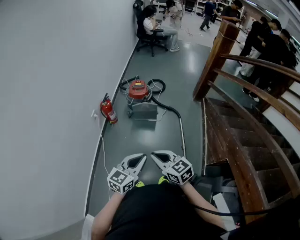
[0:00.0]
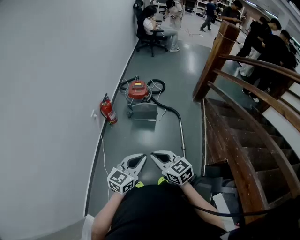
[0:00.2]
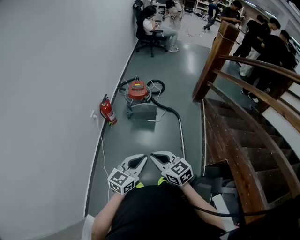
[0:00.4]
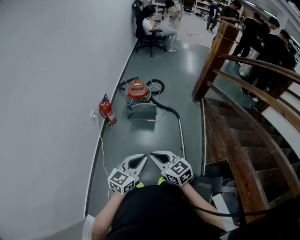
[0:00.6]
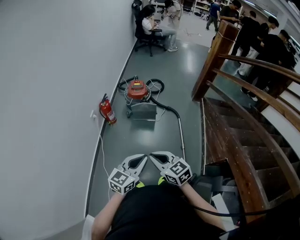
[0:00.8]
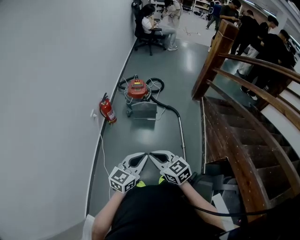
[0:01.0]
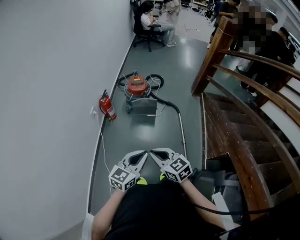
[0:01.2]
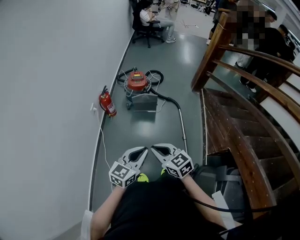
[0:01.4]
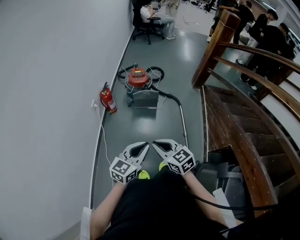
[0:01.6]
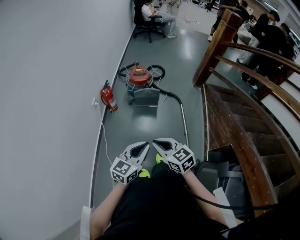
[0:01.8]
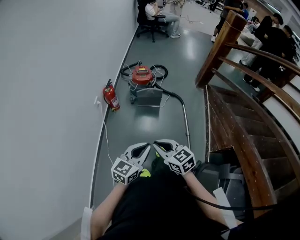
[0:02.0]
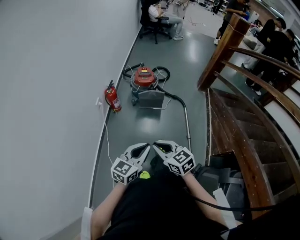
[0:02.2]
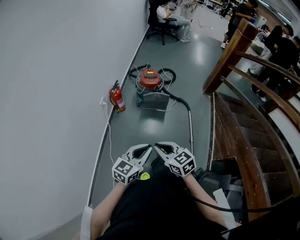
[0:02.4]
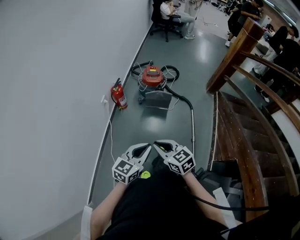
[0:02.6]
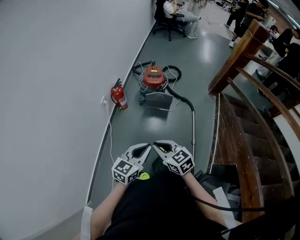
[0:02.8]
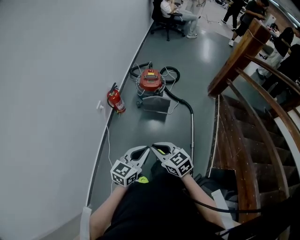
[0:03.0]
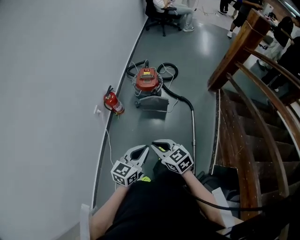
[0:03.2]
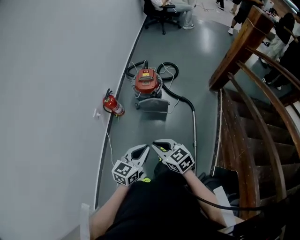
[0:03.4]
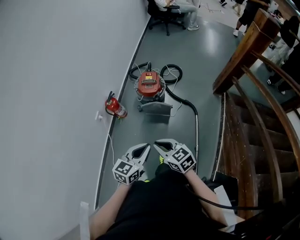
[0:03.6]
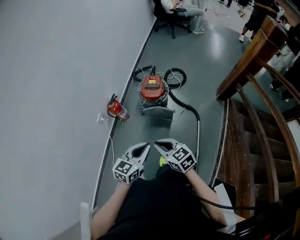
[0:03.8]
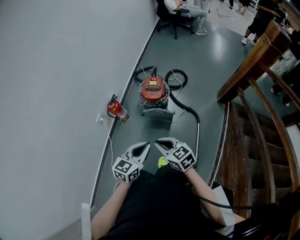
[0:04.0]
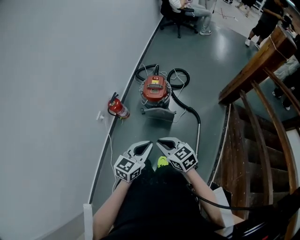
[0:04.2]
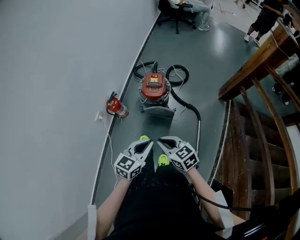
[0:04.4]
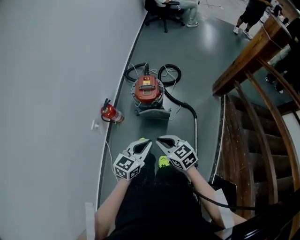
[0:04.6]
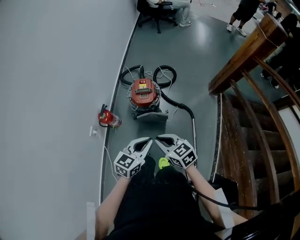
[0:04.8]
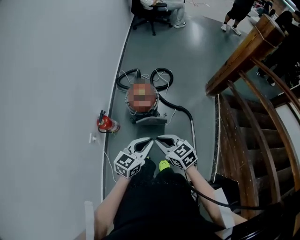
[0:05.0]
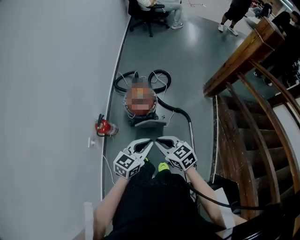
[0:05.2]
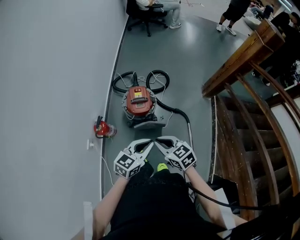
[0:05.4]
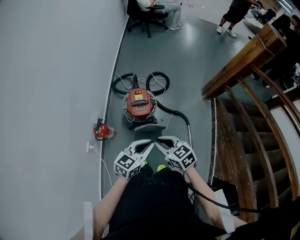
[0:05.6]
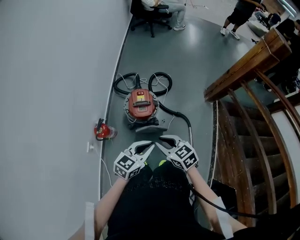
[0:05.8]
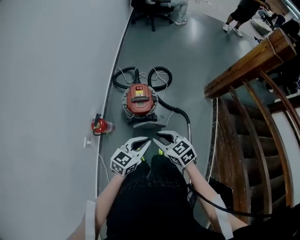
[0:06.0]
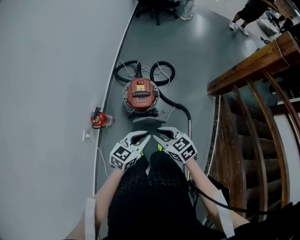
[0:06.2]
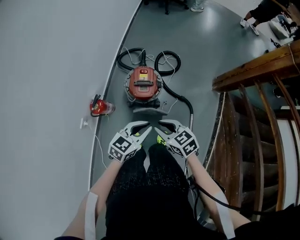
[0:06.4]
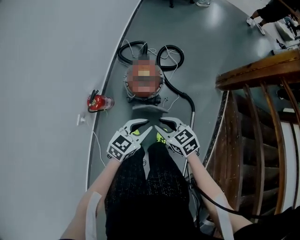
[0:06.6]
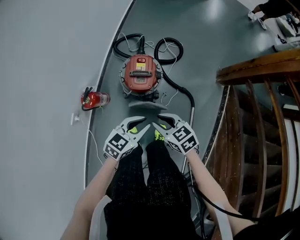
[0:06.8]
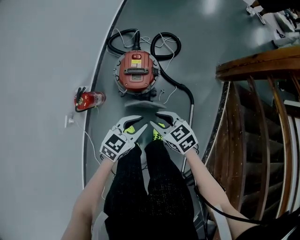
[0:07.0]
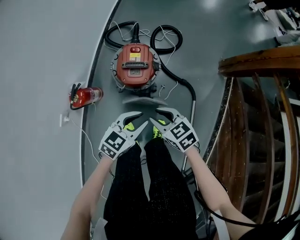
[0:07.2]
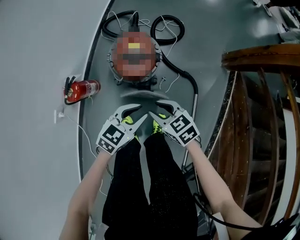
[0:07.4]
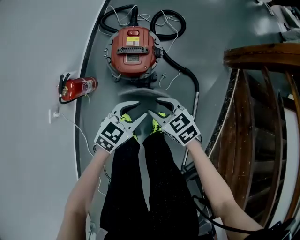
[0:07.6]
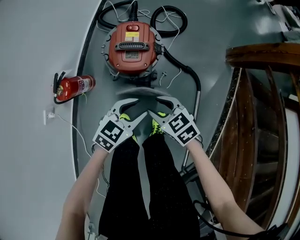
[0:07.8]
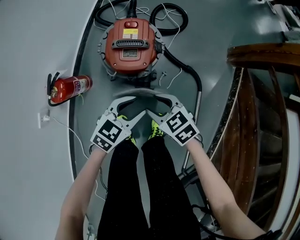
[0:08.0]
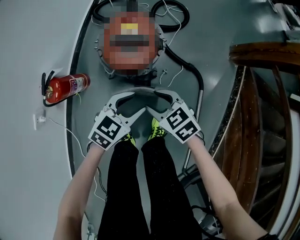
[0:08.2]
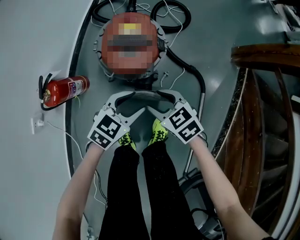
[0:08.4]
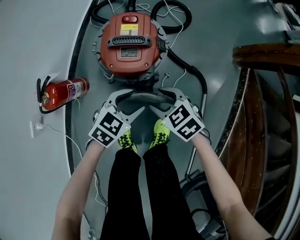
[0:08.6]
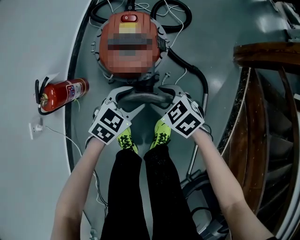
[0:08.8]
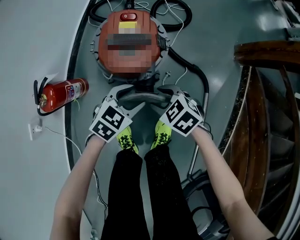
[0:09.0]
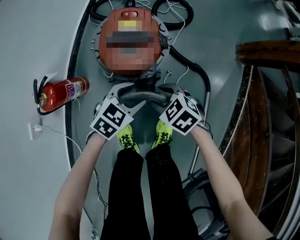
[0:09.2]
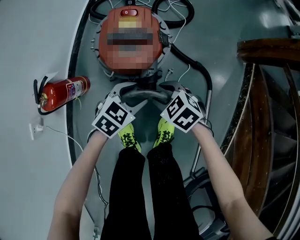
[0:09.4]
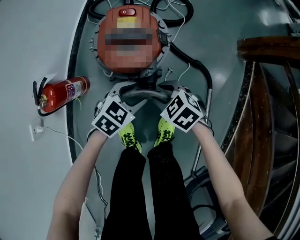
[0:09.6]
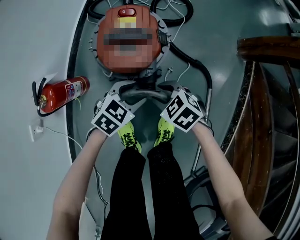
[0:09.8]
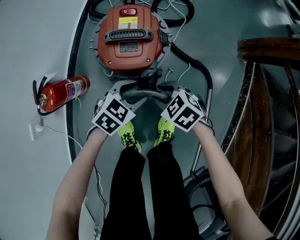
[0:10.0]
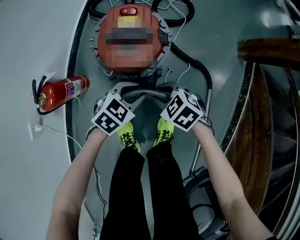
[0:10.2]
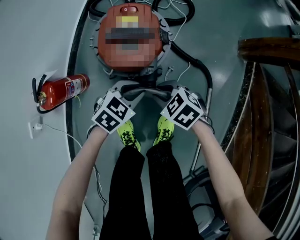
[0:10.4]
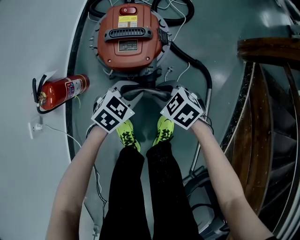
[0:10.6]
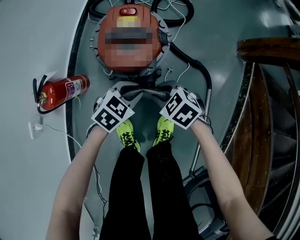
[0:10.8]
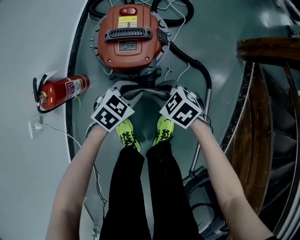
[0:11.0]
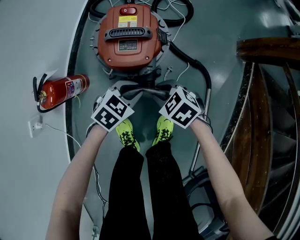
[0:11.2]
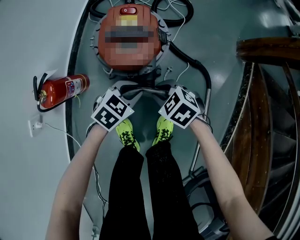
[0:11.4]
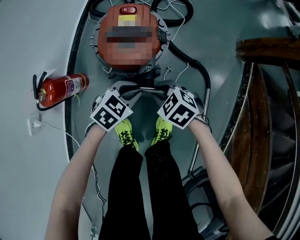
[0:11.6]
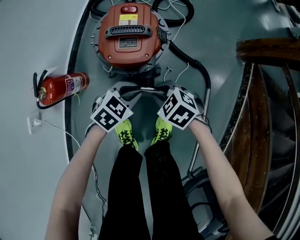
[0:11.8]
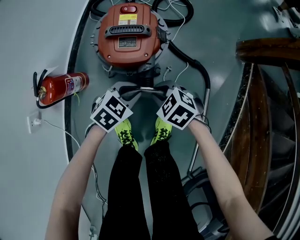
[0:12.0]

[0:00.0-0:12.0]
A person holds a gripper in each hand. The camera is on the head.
0:00.0 to 0:01.6: There are only small adjustments of the grippers.
0:01.6 to 0:03.0: The two grippers go roughly 10 cm forward.
0:03.0 to 0:04.4: The right gripper moves forward and to the right, roughly 20 cm. The left gripper heads forward, covering some 20 cm.
0:04.4 to 0:06.0: The two grippers go approximately 15 cm forward.
0:06.0 to 0:07.6: Both grippers travel together downward, approximately 25 cm. The left gripper opens.
0:07.6 to 0:09.0: Both grippers move downward, some 15 cm. The left gripper opens its fingers.
0:09.0 to 0:10.4: The left gripper closes its fingers, while the right gripper closes its fingers.
0:10.4 to 0:12.0: The grippers stay close to where they were, moving slightly.

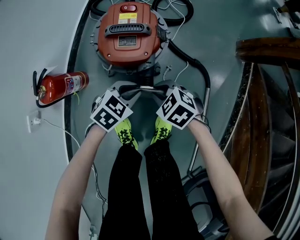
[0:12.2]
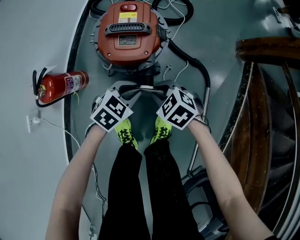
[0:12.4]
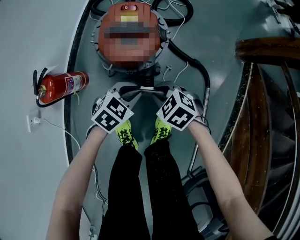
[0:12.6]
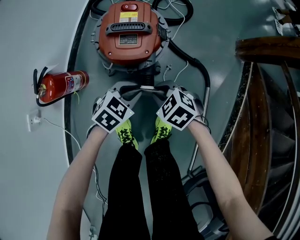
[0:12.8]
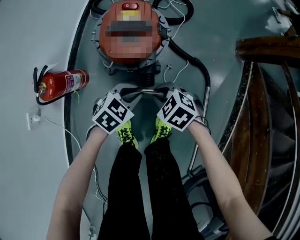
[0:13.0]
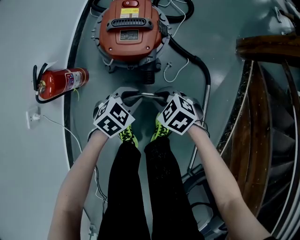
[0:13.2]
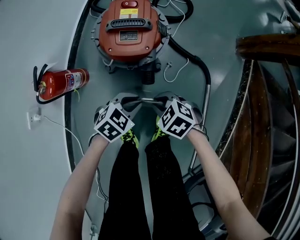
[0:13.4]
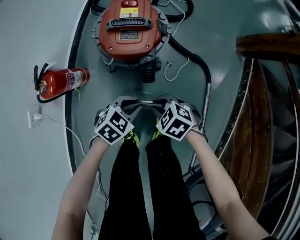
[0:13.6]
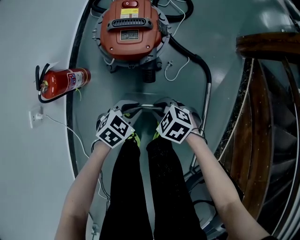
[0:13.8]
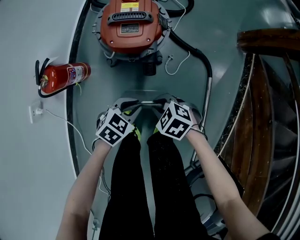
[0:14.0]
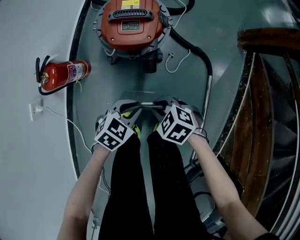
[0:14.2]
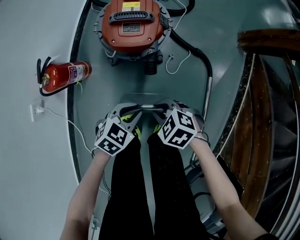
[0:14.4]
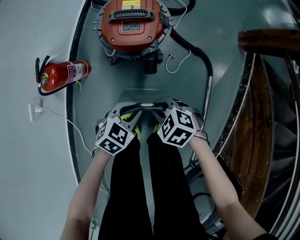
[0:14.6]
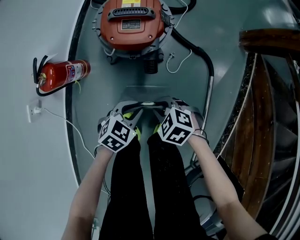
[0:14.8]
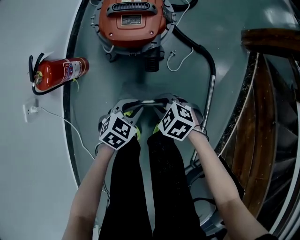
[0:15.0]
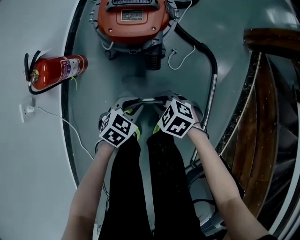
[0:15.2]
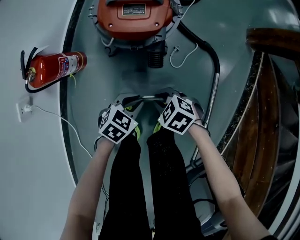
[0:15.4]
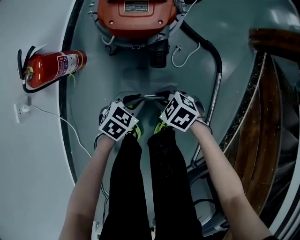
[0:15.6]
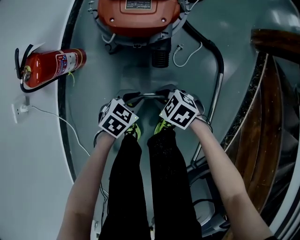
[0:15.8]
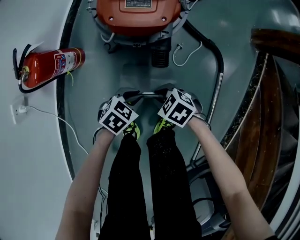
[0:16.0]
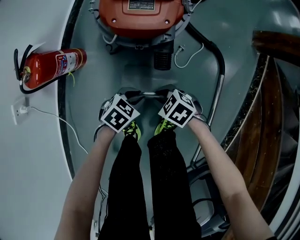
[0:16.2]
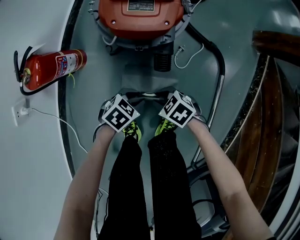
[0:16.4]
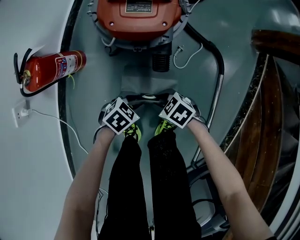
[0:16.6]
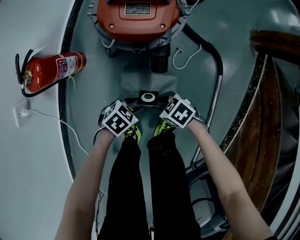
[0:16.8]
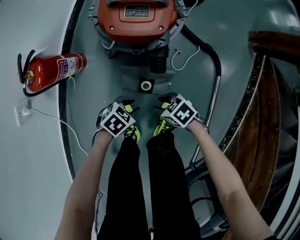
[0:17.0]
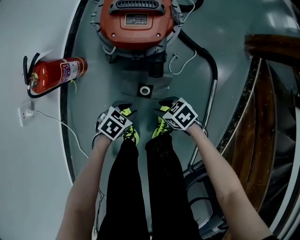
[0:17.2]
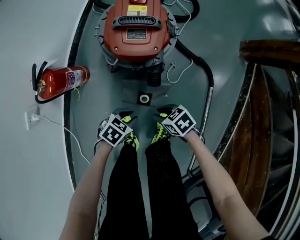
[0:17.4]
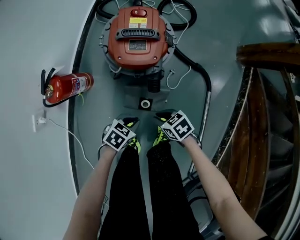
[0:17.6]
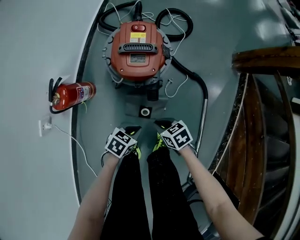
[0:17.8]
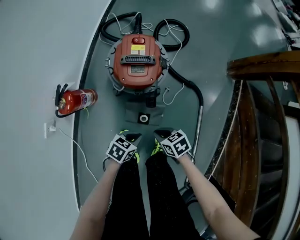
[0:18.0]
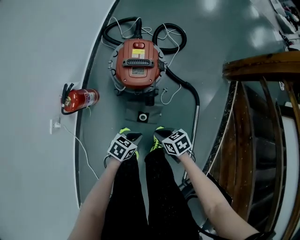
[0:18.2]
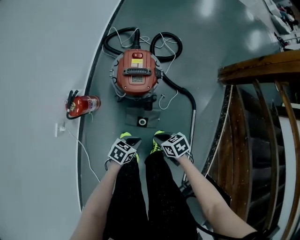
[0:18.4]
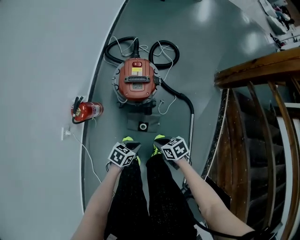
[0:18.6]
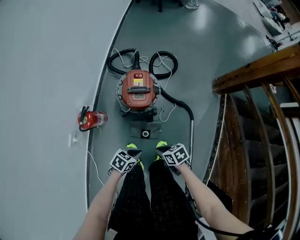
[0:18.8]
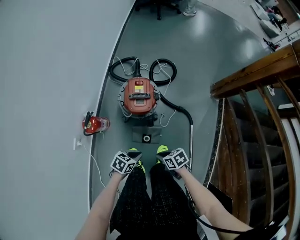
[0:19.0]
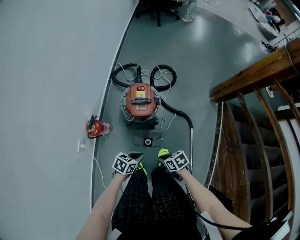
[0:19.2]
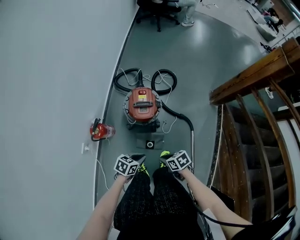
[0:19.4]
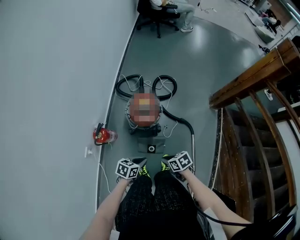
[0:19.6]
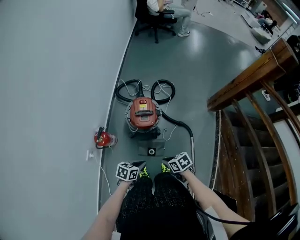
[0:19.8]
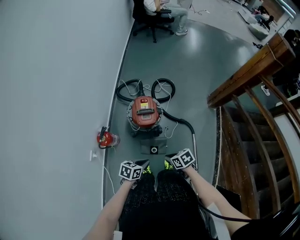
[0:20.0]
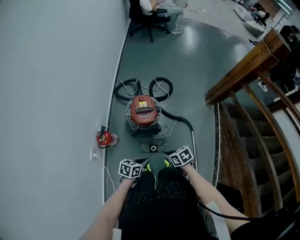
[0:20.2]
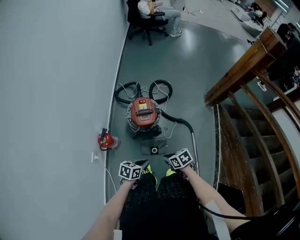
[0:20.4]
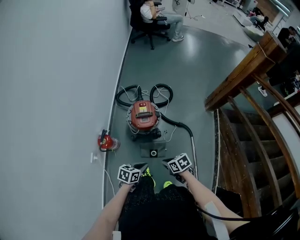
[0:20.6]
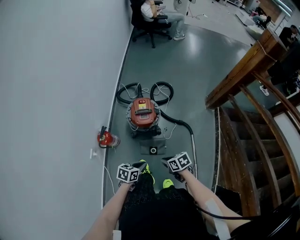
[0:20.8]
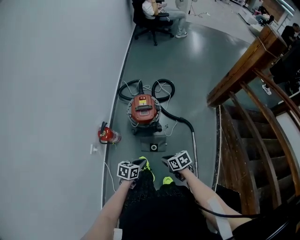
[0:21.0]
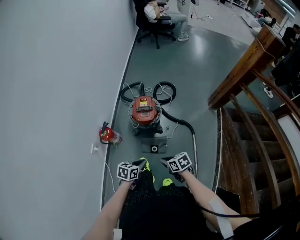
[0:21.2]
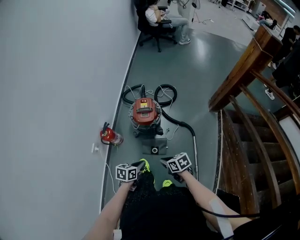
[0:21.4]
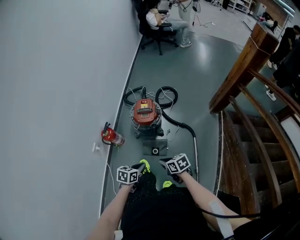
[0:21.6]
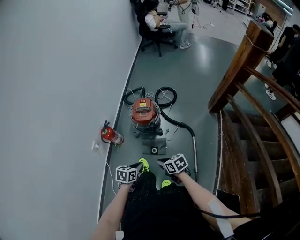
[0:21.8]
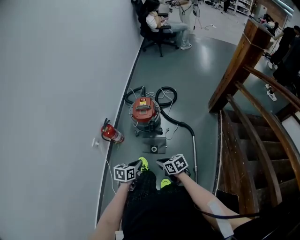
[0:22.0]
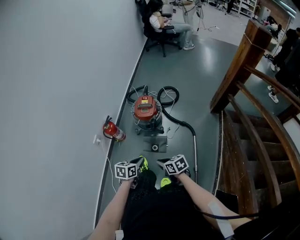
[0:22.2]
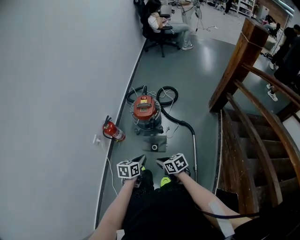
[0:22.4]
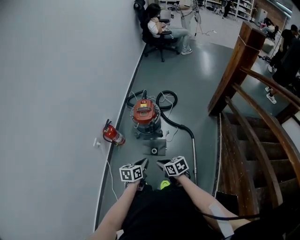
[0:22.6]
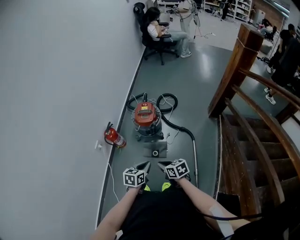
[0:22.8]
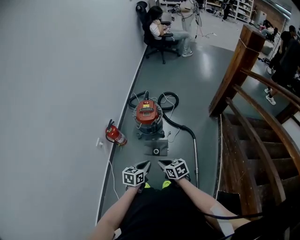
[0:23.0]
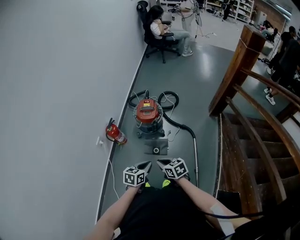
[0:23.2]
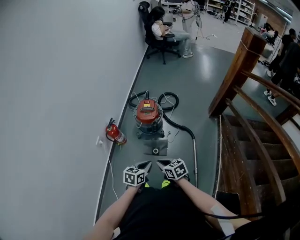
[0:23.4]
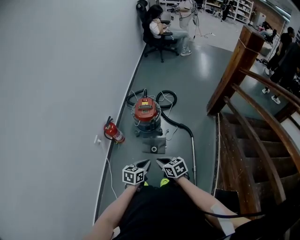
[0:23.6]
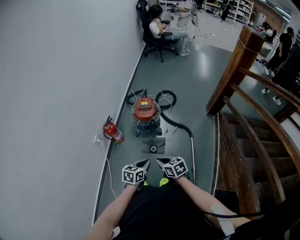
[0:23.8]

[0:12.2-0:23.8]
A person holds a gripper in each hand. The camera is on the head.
0:12.2 to 0:13.6: The left gripper moves roughly 10 cm. The right gripper ends up about 10 cm from where it was.
0:13.6 to 0:15.0: The grippers stay close to where they were, moving slightly.
0:15.0 to 0:16.6: Both grippers travel together downward, approximately 10 cm.
0:16.6 to 0:18.0: The two grippers go about 15 cm upward. The left gripper closes up. The right gripper swivels about 30 degrees.
0:18.0 to 0:19.4: The grippers both shift upward by roughly 20 cm.
0:19.4 to 0:21.0: The grippers both shift upward by about 5 cm.
0:21.0 to 0:22.4: The left gripper moves roughly 10 cm, and swivels approximately 20 degrees. The right gripper moves about 10 cm.
0:22.4 to 0:23.8: The grippers move only a little.
